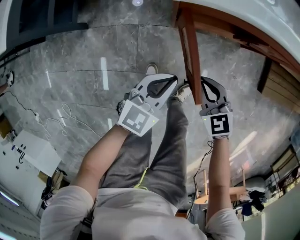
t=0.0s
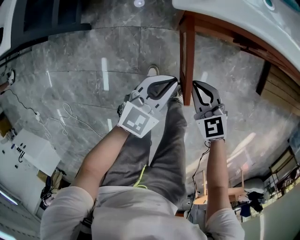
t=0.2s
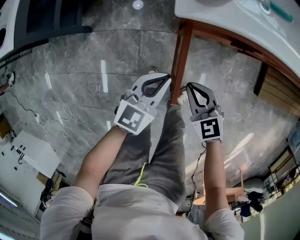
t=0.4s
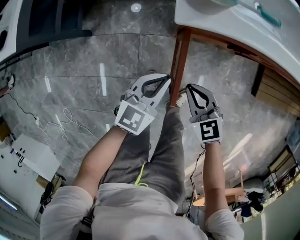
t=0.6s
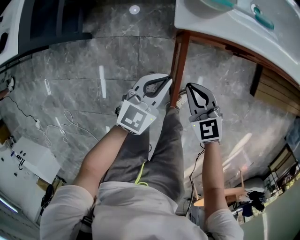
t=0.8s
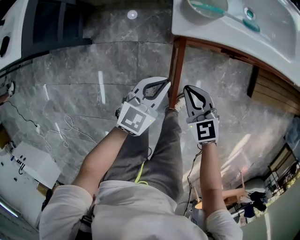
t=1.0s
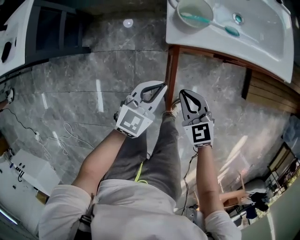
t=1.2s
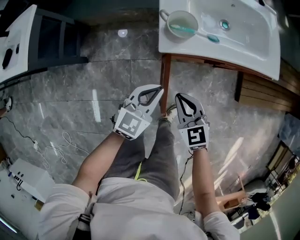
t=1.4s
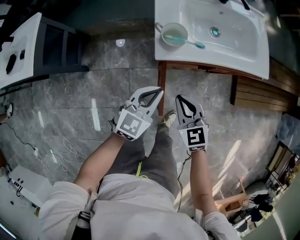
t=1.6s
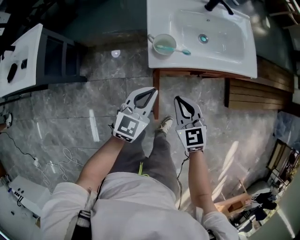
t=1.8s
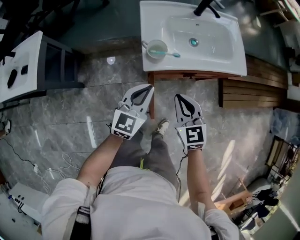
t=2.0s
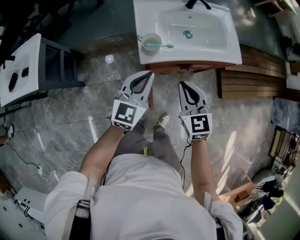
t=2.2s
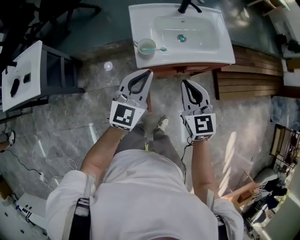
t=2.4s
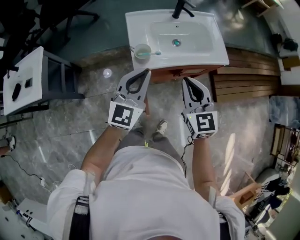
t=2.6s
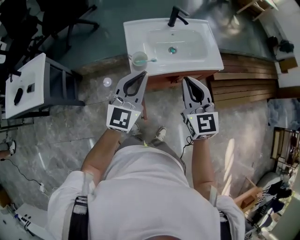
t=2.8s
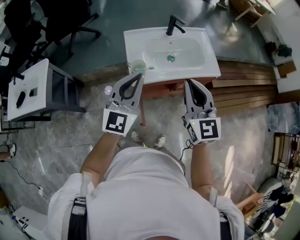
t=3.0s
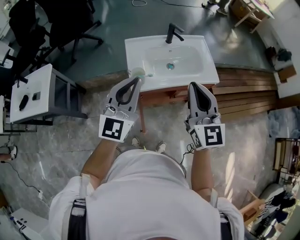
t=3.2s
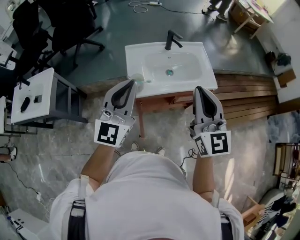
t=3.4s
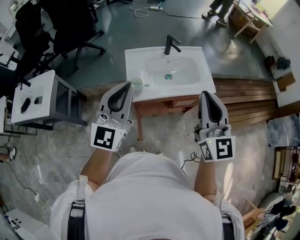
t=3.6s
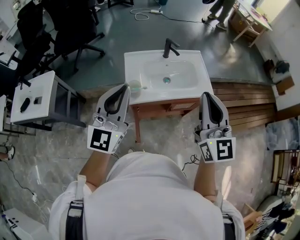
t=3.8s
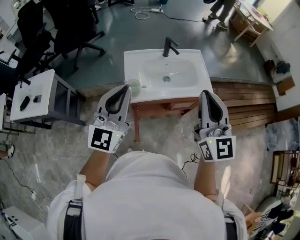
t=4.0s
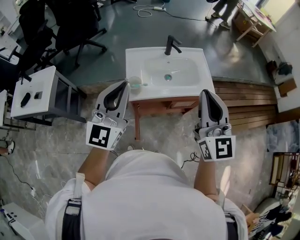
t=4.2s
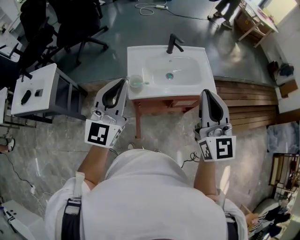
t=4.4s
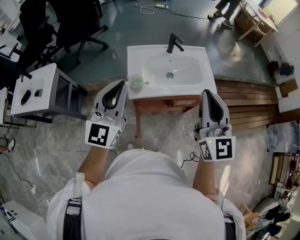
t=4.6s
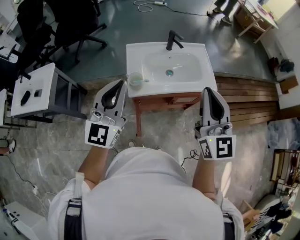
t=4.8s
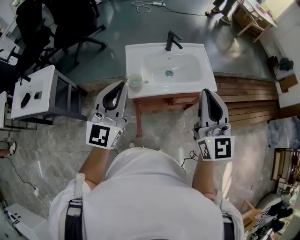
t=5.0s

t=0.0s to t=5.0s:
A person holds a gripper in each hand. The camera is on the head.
t=0.0s to t=1.6s: The two grippers go about 25 cm upward.
t=1.6s to t=3.4s: Both grippers move upward, approximately 40 cm. The left gripper tips its fingers upward by approximately 30 degrees. The right gripper points its fingers roughly 40 degrees further upward.
t=3.4s to t=5.0s: The grippers stay close to where they were, moving slightly.

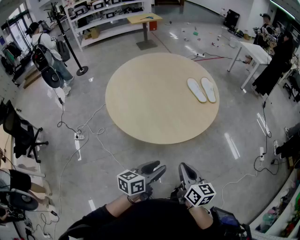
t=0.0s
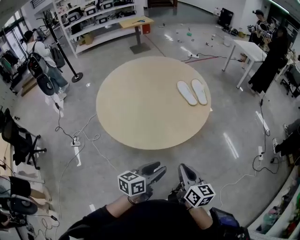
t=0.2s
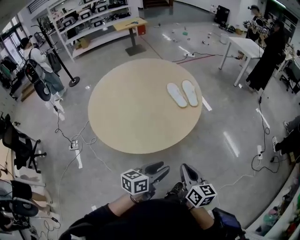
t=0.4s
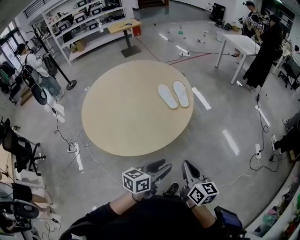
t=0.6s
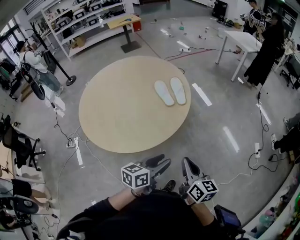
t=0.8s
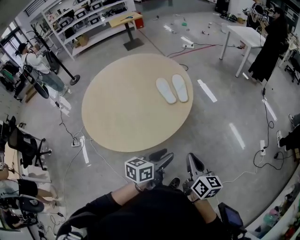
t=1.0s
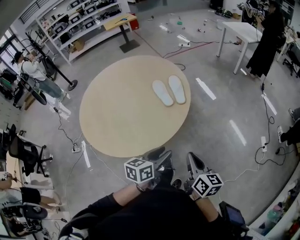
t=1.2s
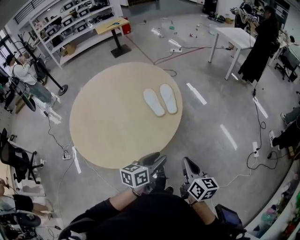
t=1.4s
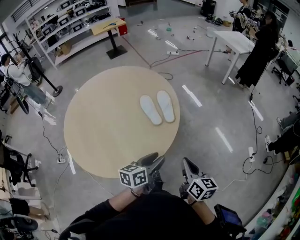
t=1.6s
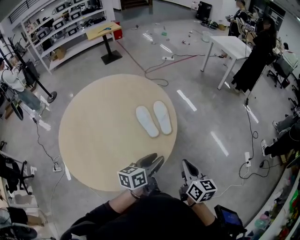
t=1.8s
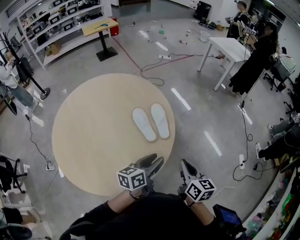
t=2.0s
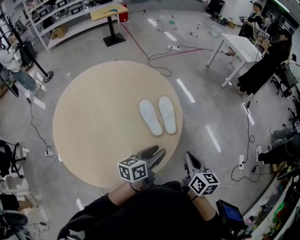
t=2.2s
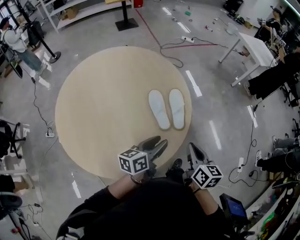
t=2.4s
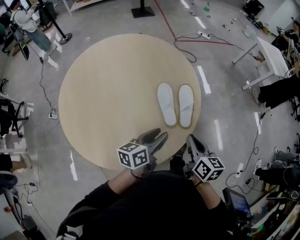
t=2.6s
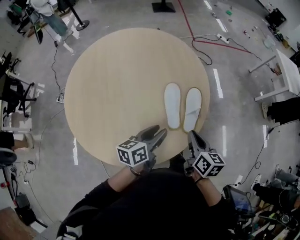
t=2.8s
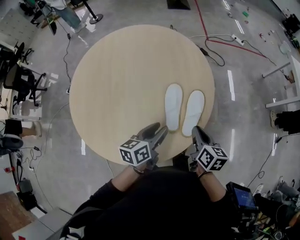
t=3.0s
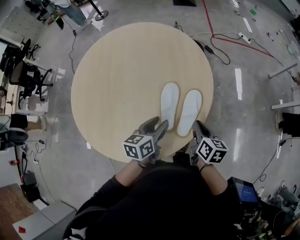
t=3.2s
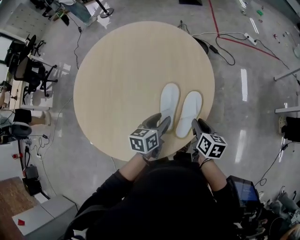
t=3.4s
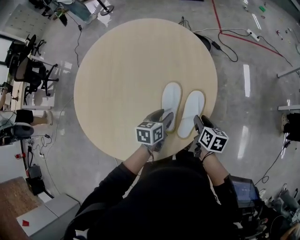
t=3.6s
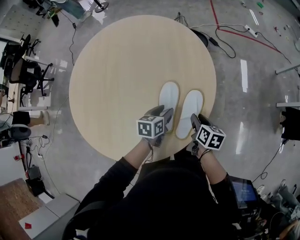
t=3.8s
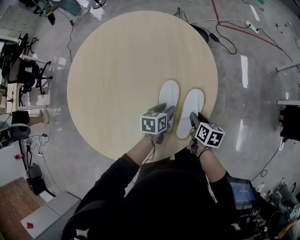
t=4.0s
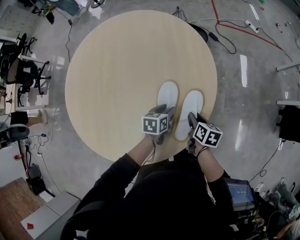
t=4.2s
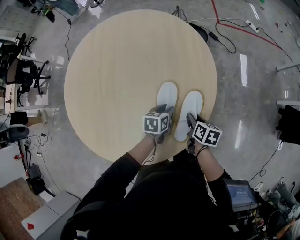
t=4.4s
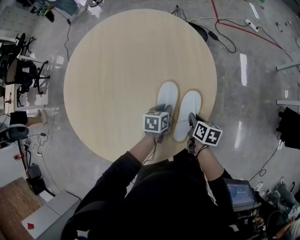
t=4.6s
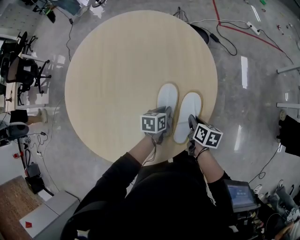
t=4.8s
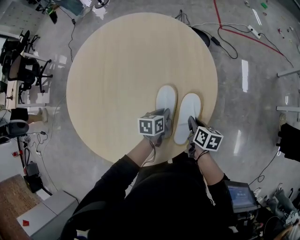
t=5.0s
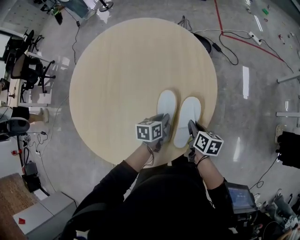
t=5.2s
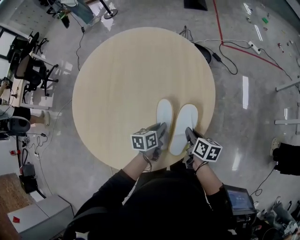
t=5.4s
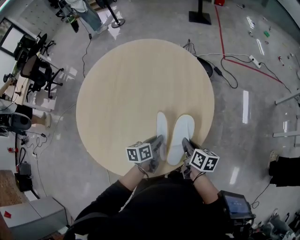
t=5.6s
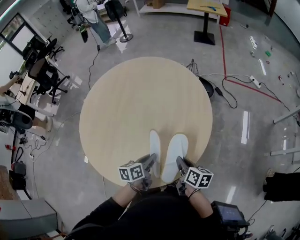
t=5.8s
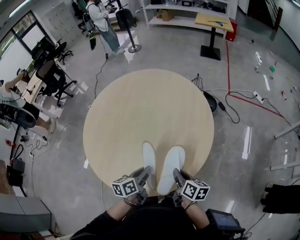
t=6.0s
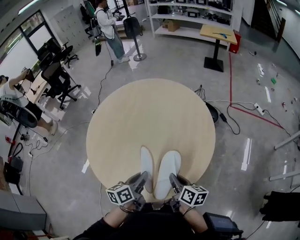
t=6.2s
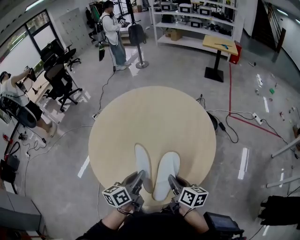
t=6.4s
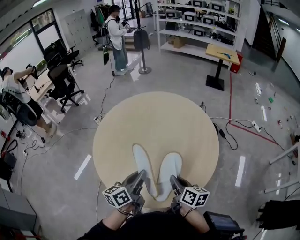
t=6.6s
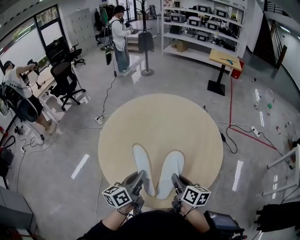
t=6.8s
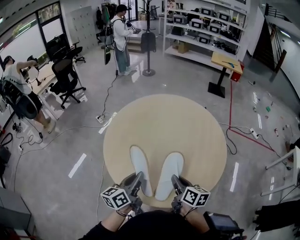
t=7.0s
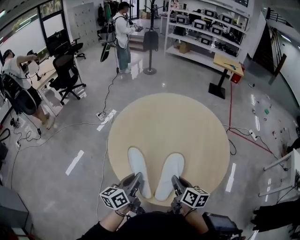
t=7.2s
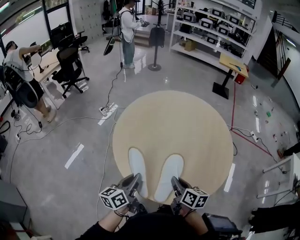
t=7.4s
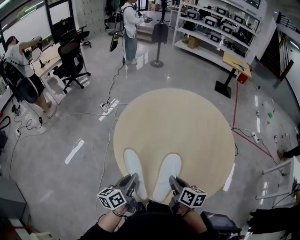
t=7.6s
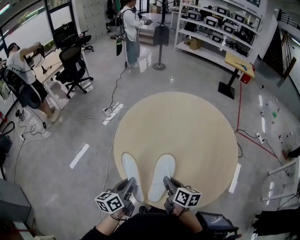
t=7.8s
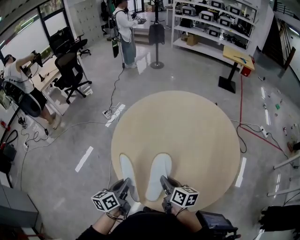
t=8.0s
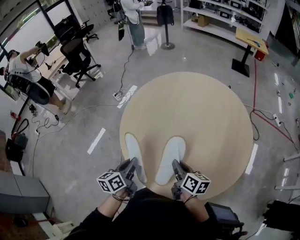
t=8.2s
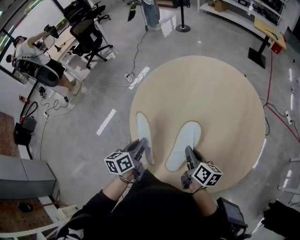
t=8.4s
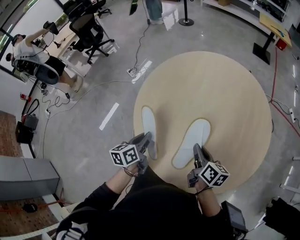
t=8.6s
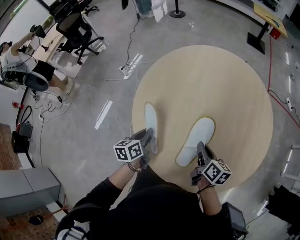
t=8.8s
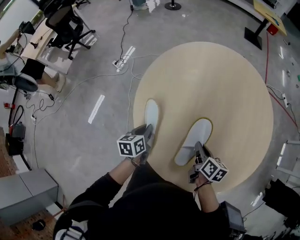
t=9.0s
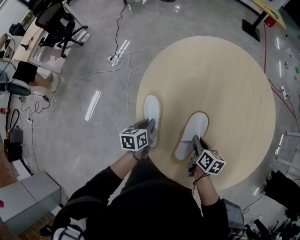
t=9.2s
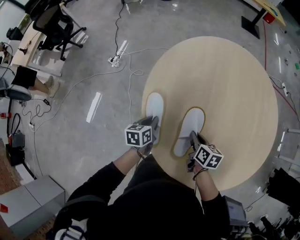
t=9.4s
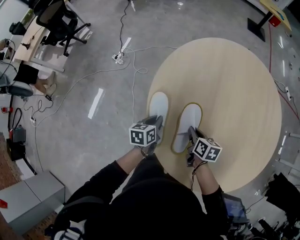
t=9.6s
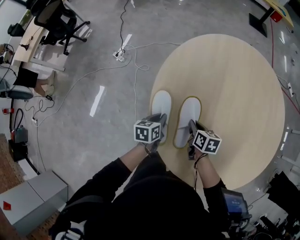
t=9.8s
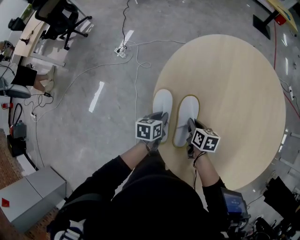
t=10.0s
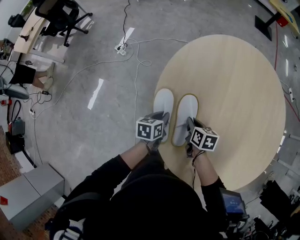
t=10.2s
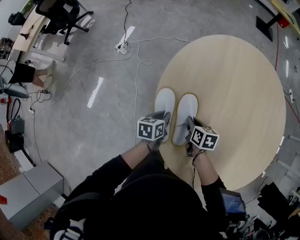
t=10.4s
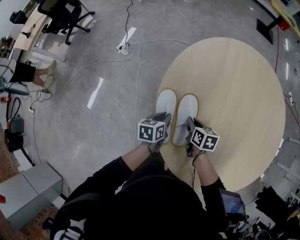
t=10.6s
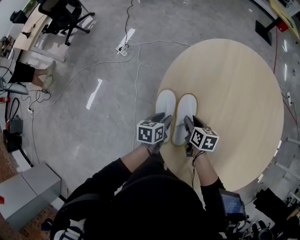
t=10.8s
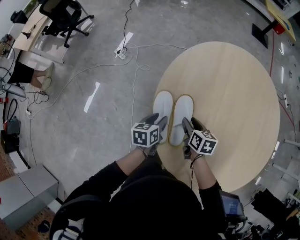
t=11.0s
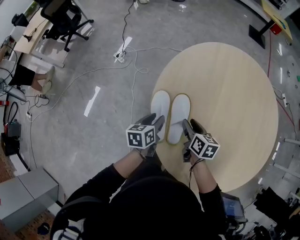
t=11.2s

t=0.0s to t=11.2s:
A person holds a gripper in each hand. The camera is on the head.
t=0.0s to t=1.6s: The pair of grippers is taken forward and to the right, approximately 50 cm.
t=1.6s to t=3.2s: The left gripper changes place by approximately 35 cm, and rotates roughly 40 degrees, while the right gripper ends up some 50 cm from where it was, and swivels approximately 40 degrees.
t=3.2s to t=4.8s: The grippers both shift downward and forward by some 15 cm. The right gripper opens and closes again, while the left gripper swivels some 20 degrees, and closes up.
t=4.8s to t=6.4s: Both grippers travel together upward, about 25 cm. The right gripper rotates roughly 30 degrees; the left gripper tips its fingers upward by roughly 40 degrees.
t=6.4s to t=8.0s: Both grippers move to the left, approximately 30 cm.
t=8.0s to t=9.6s: The left gripper shifts some 40 cm forward, downward and to the left, and changes its angle by about 30 degrees; the right gripper travels forward, to the left and downward by approximately 35 cm, and changes its angle by approximately 20 degrees.
t=9.6s to t=11.2s: The right gripper goes roughly 5 cm to the left, and opens; the left gripper changes place by some 5 cm, and opens its fingers.

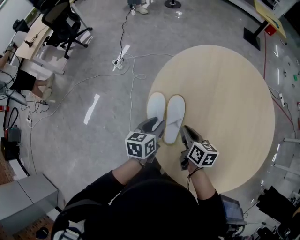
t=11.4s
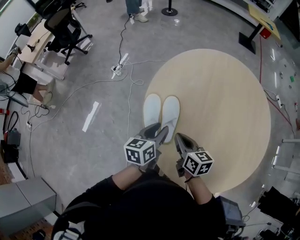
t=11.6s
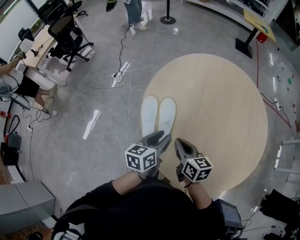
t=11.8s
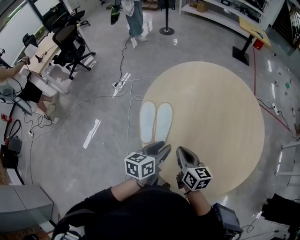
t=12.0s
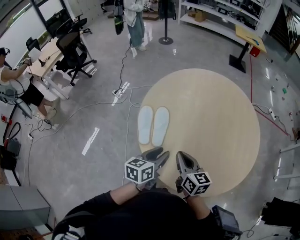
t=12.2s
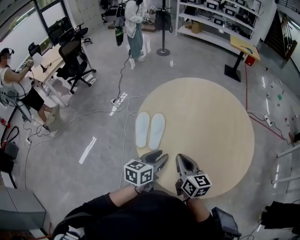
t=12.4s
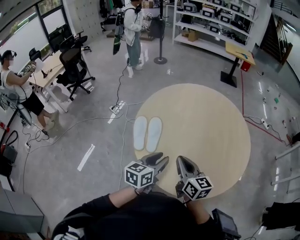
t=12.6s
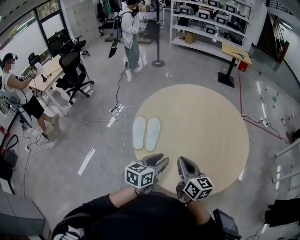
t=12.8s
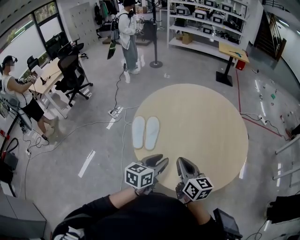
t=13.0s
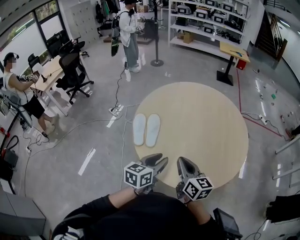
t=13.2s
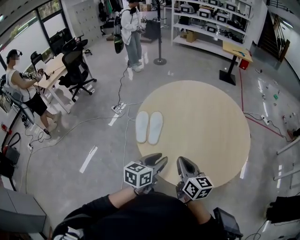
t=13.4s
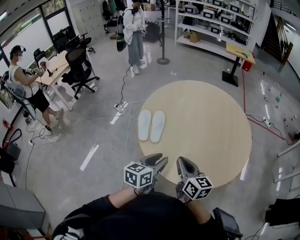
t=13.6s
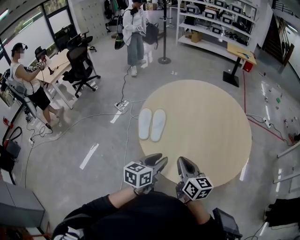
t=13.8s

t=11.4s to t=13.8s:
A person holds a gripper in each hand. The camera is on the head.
t=11.4s to t=12.6s: The left gripper is displaced backward, to the right and upward by about 35 cm, and turns by some 20 degrees, while the right gripper goes approximately 30 cm backward, upward and to the right, and swivels some 30 degrees.
t=12.6s to t=13.8s: Both grippers move backward, about 10 cm.

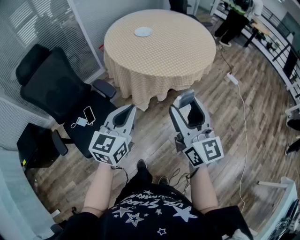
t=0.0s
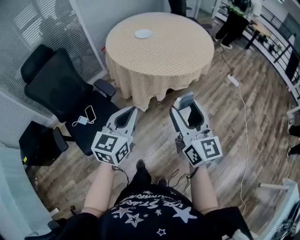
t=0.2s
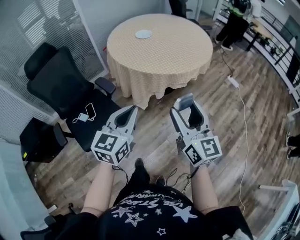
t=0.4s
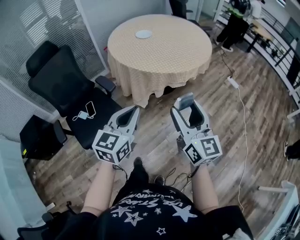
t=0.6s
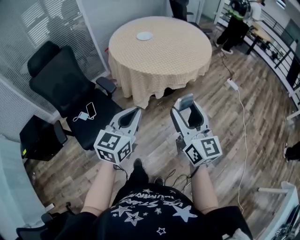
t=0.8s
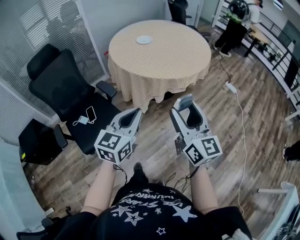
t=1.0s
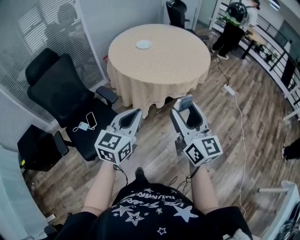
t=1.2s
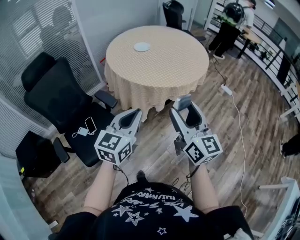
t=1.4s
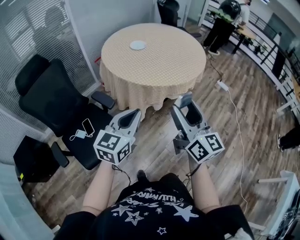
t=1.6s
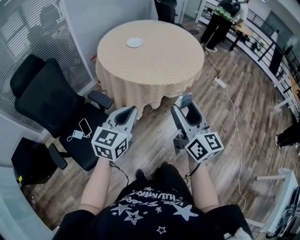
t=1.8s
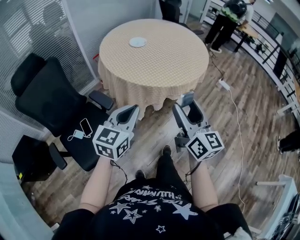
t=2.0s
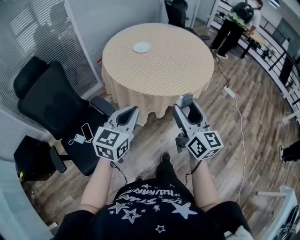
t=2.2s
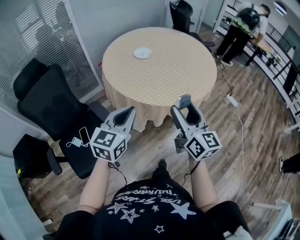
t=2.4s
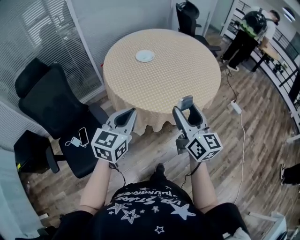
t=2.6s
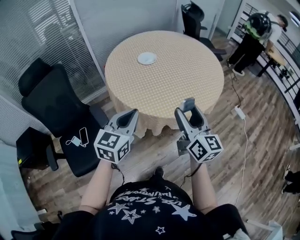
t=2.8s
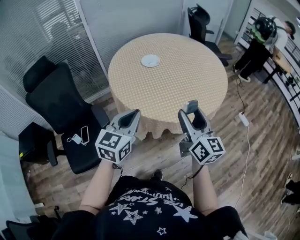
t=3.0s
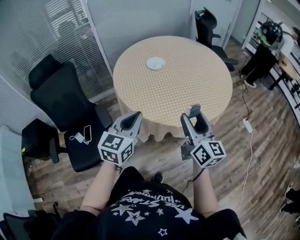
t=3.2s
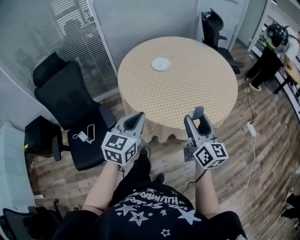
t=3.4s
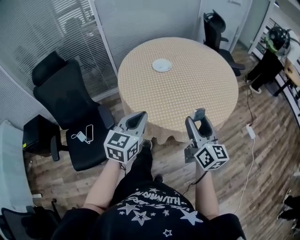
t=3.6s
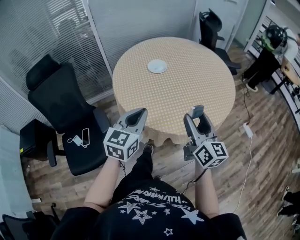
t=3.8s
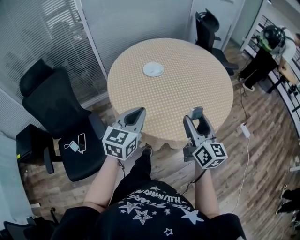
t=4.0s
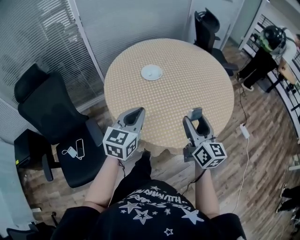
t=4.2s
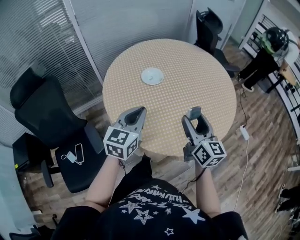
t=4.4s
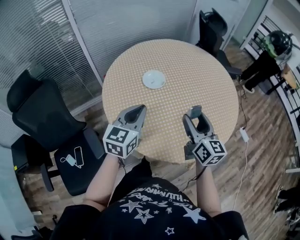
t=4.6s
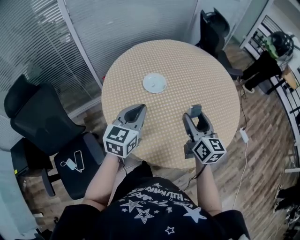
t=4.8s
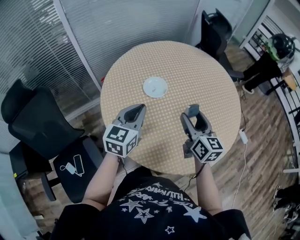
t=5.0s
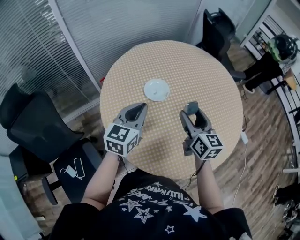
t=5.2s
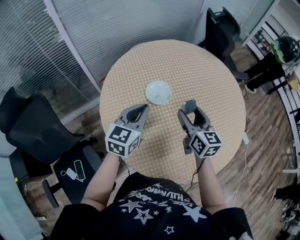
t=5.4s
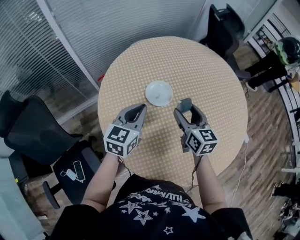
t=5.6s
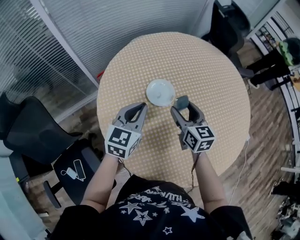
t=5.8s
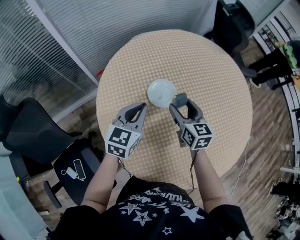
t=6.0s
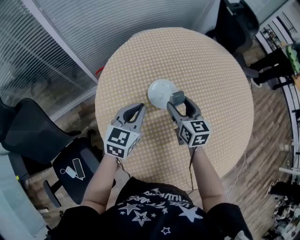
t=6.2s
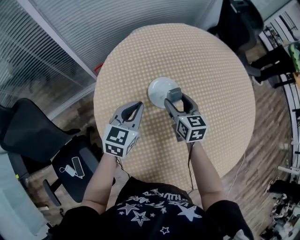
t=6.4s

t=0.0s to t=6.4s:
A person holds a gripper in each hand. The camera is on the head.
t=0.0s to t=1.6s: The left gripper travels backward and back again, some 10 cm each way, while the right gripper moves some 5 cm to the right and comes back.
t=1.6s to t=3.2s: Both grippers move forward and to the right, about 30 cm. The left gripper swivels roughly 20 degrees.
t=3.2s to t=4.8s: The grippers both shift forward by about 30 cm.
t=4.8s to t=6.4s: The right gripper is displaced forward, downward and to the left by some 30 cm, and turns by roughly 20 degrees. The left gripper shifts approximately 20 cm forward and downward.
